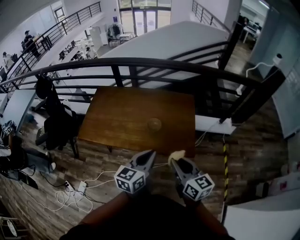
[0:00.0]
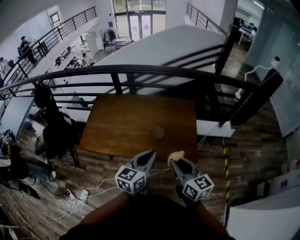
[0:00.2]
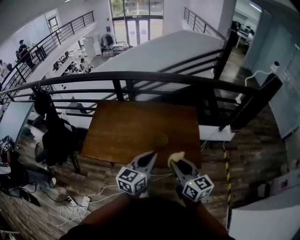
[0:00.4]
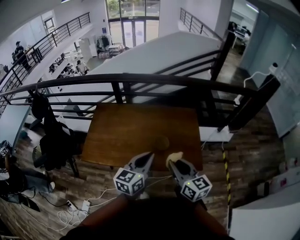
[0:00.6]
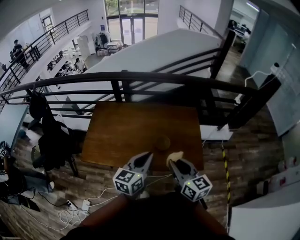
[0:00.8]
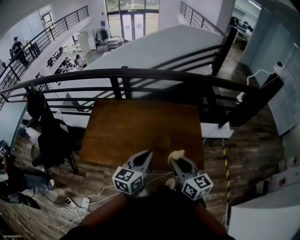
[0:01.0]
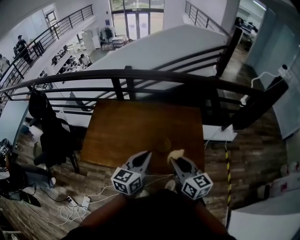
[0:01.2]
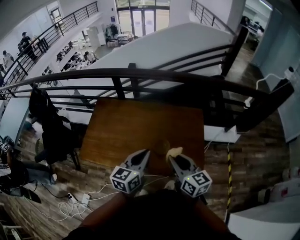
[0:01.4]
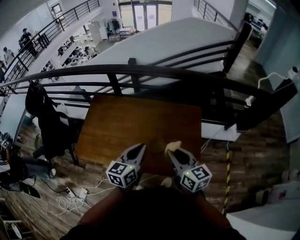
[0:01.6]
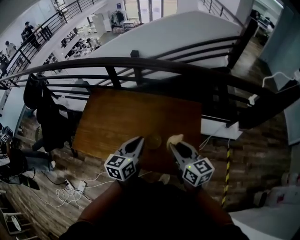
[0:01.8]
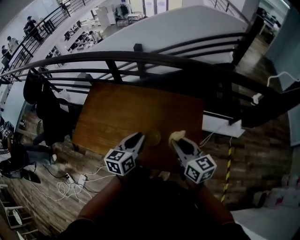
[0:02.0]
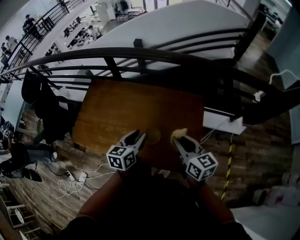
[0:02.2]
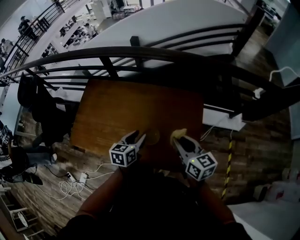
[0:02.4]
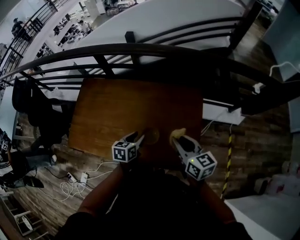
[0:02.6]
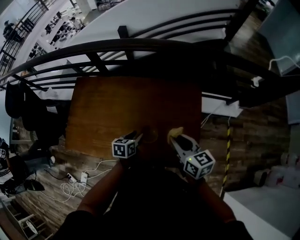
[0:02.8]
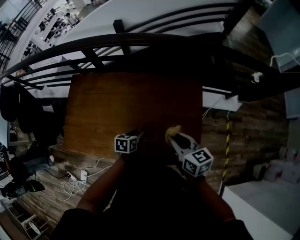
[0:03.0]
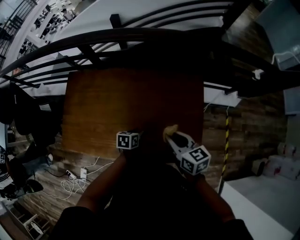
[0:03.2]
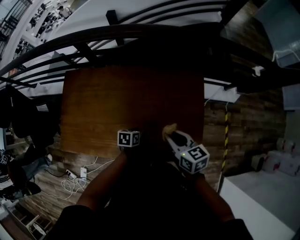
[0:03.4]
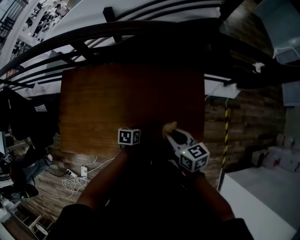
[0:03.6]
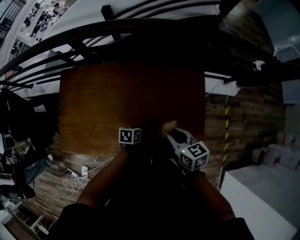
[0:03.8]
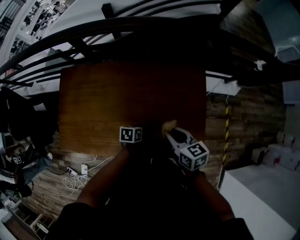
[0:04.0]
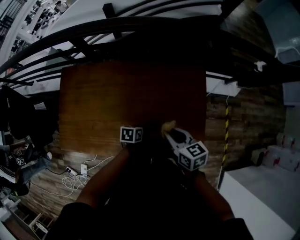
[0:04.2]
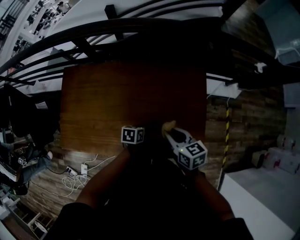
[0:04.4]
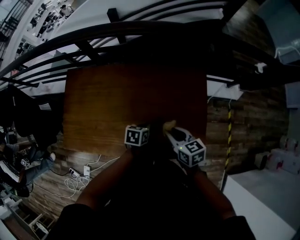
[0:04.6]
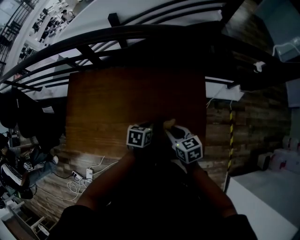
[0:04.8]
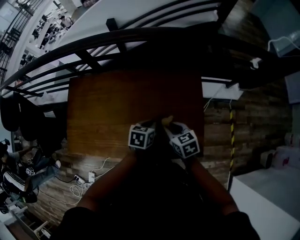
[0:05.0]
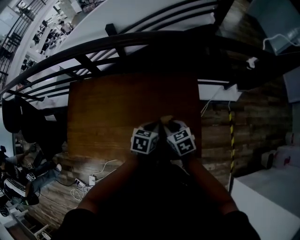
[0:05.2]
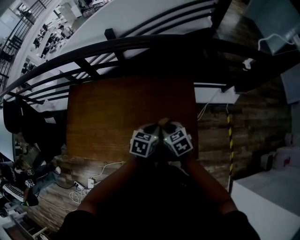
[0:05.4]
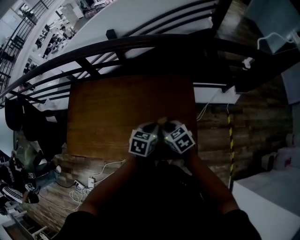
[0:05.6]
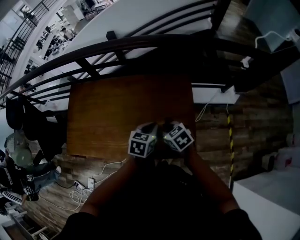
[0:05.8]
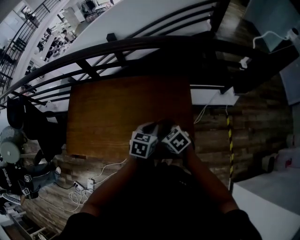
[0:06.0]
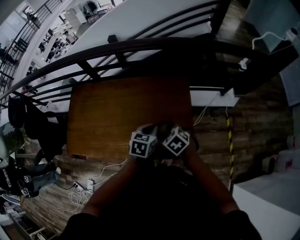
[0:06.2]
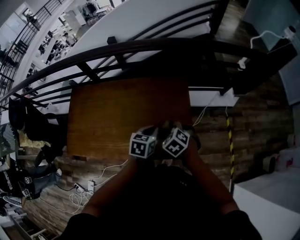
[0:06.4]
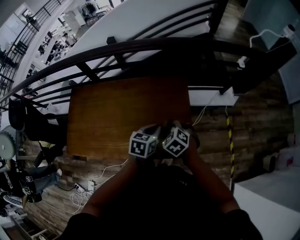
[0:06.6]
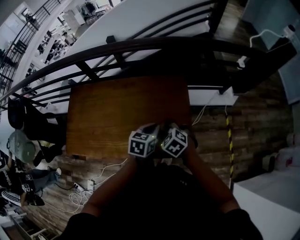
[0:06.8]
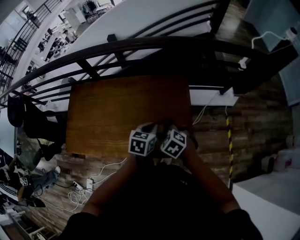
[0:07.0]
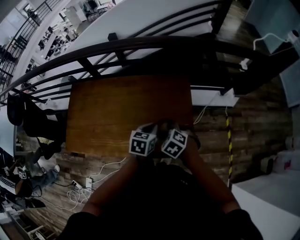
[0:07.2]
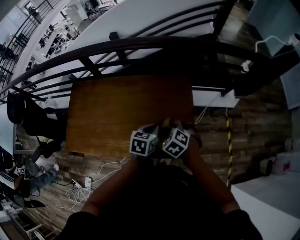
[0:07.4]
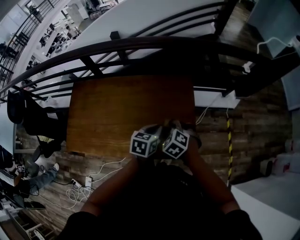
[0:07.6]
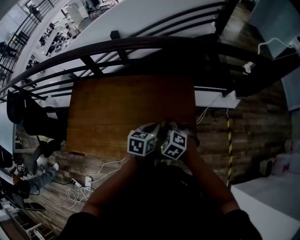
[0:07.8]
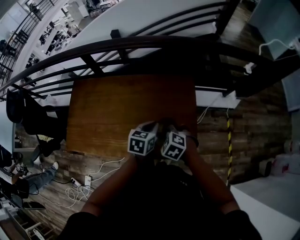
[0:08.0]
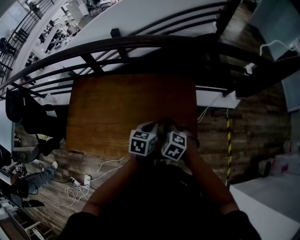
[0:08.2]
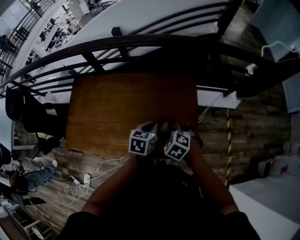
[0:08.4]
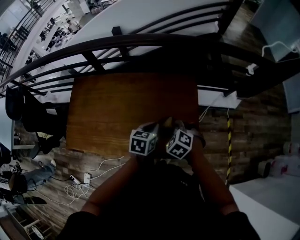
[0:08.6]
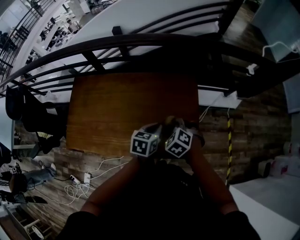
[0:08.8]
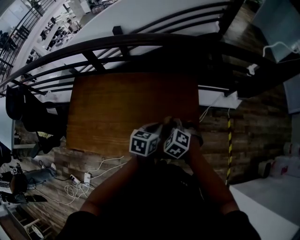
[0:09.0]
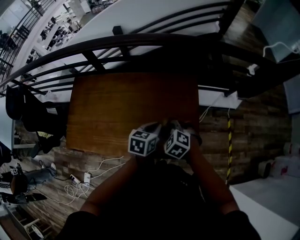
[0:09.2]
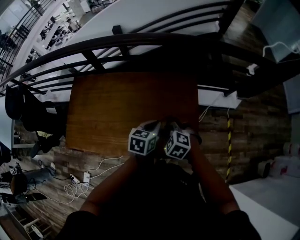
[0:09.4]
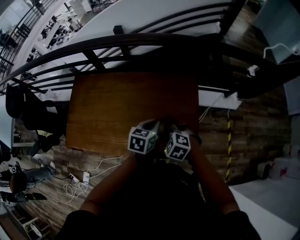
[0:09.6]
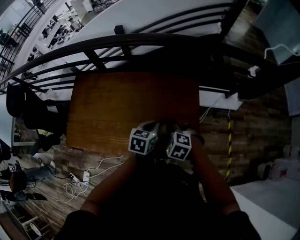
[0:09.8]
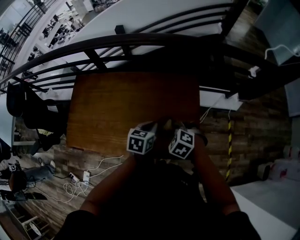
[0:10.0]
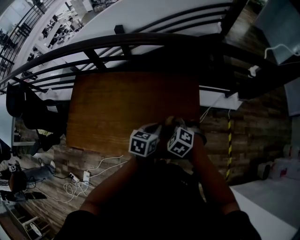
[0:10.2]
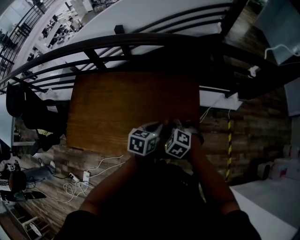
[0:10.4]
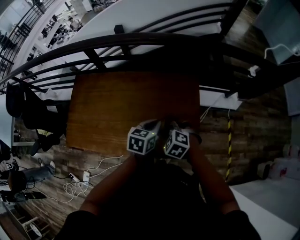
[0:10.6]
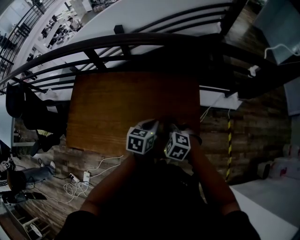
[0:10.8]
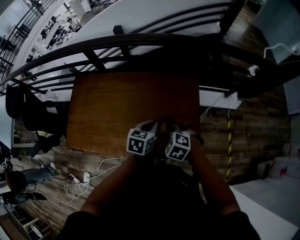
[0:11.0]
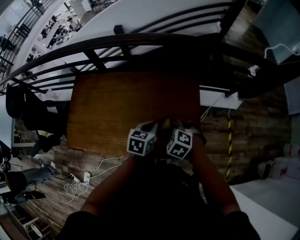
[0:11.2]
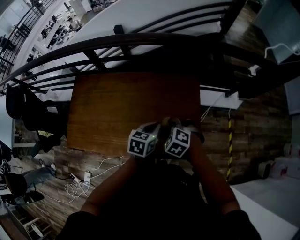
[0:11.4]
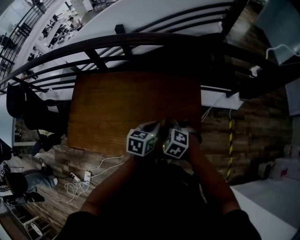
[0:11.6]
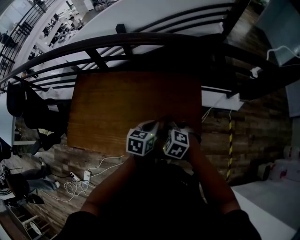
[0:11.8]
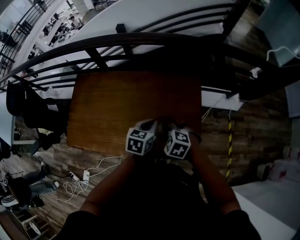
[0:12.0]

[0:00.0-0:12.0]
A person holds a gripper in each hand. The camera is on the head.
0:00.0 to 0:01.6: The two grippers go approximately 20 cm forward.
0:01.6 to 0:03.0: The right gripper is displaced downward and forward by about 15 cm, while the left gripper shifts some 30 cm downward, tips its fingers downward by approximately 40 degrees, and opens its fingers.
0:03.0 to 0:04.4: The grippers both shift downward by approximately 5 cm. The left gripper closes.
0:04.4 to 0:06.0: The right gripper travels backward and to the right by about 10 cm, and rotates about 30 degrees. Meanwhile the left gripper travels upward and to the right by roughly 25 cm, and swivels some 30 degrees.
0:06.0 to 0:07.6: The right gripper swivels about 30 degrees.
0:07.6 to 0:10.4: The grippers move only a little.
0:10.4 to 0:12.0: The right gripper ends up approximately 5 cm from where it was.

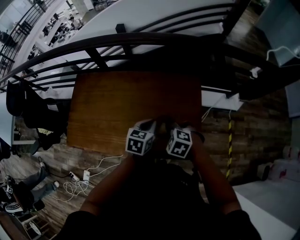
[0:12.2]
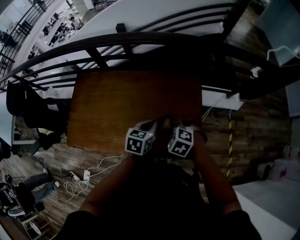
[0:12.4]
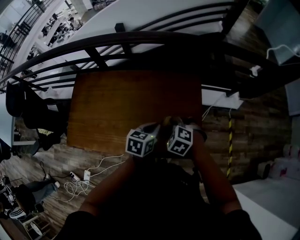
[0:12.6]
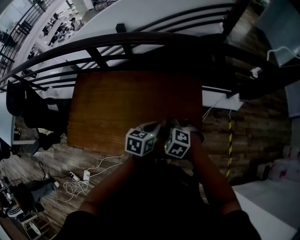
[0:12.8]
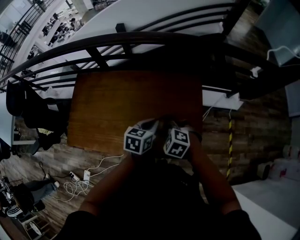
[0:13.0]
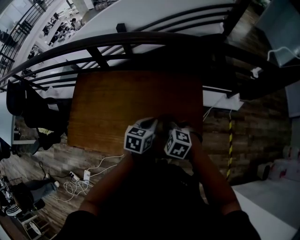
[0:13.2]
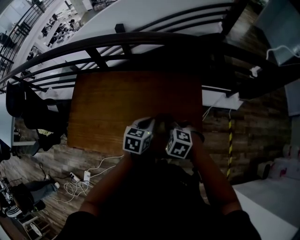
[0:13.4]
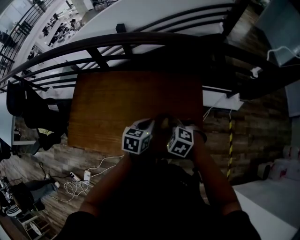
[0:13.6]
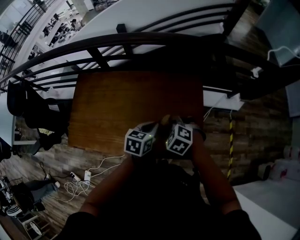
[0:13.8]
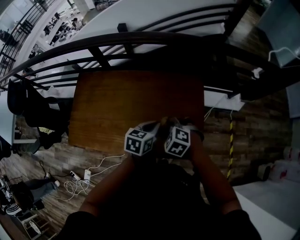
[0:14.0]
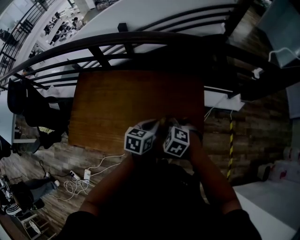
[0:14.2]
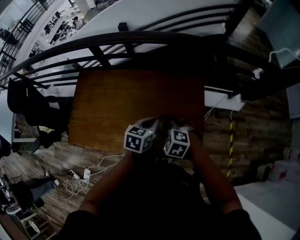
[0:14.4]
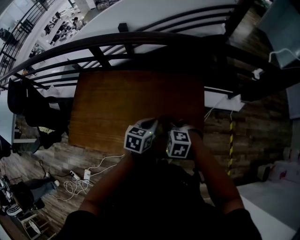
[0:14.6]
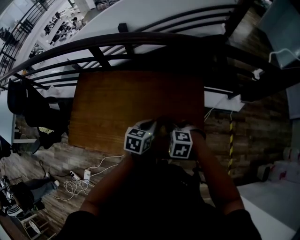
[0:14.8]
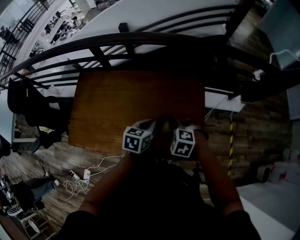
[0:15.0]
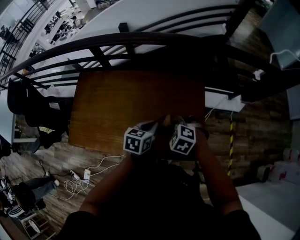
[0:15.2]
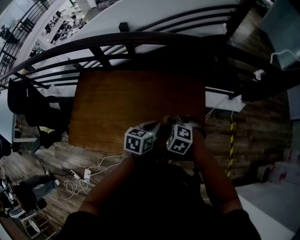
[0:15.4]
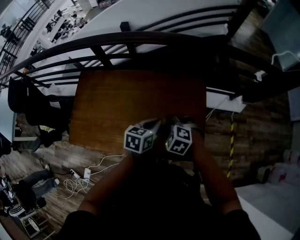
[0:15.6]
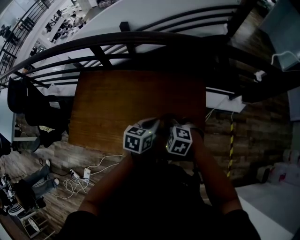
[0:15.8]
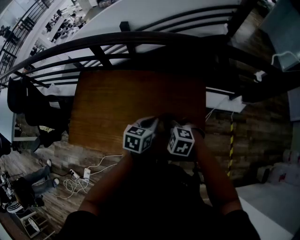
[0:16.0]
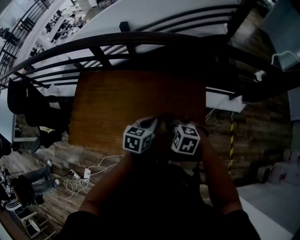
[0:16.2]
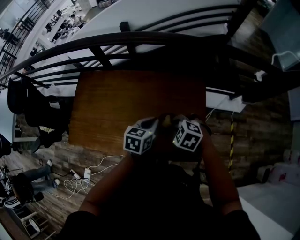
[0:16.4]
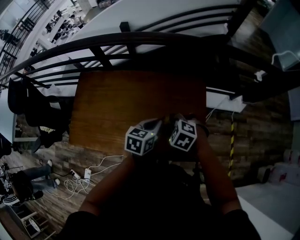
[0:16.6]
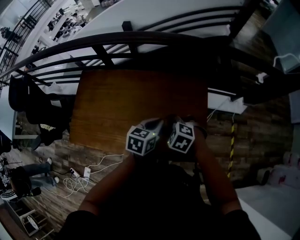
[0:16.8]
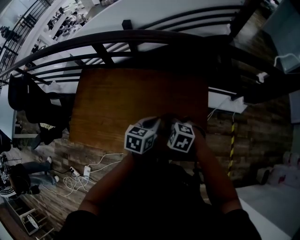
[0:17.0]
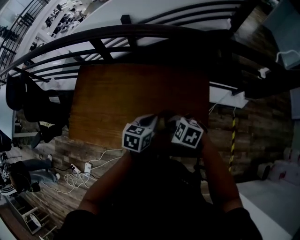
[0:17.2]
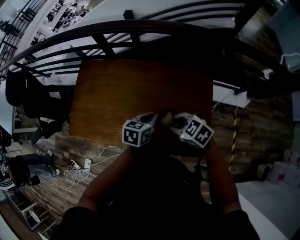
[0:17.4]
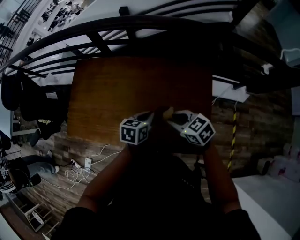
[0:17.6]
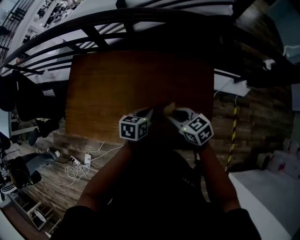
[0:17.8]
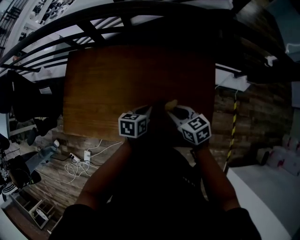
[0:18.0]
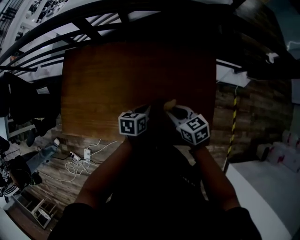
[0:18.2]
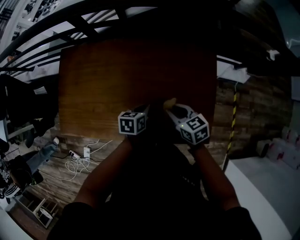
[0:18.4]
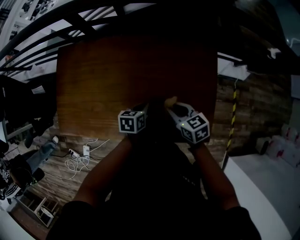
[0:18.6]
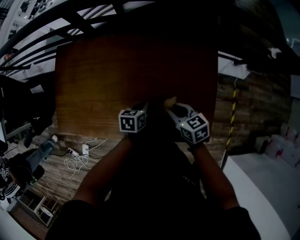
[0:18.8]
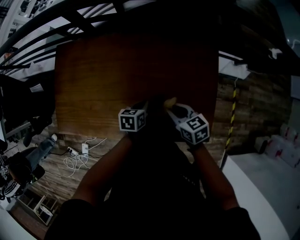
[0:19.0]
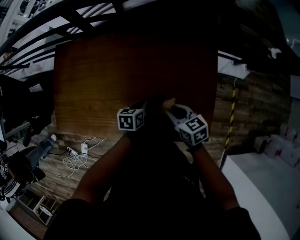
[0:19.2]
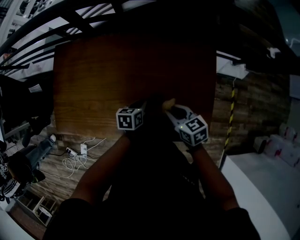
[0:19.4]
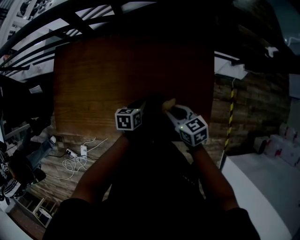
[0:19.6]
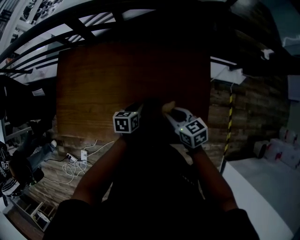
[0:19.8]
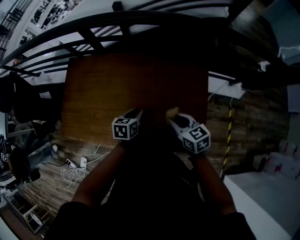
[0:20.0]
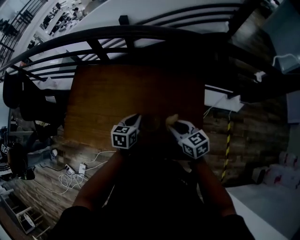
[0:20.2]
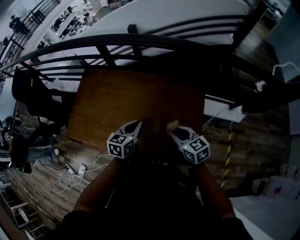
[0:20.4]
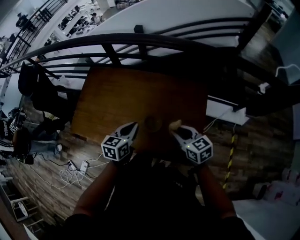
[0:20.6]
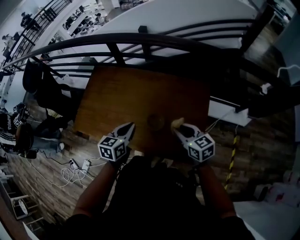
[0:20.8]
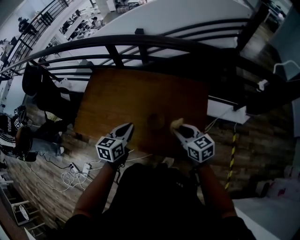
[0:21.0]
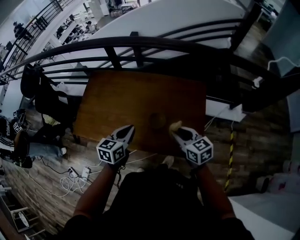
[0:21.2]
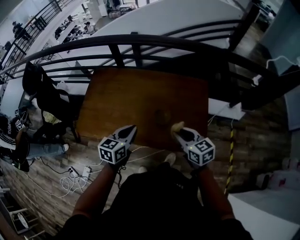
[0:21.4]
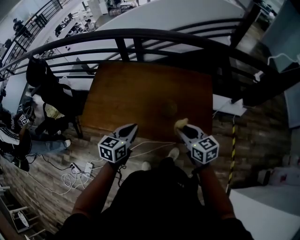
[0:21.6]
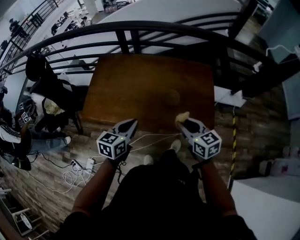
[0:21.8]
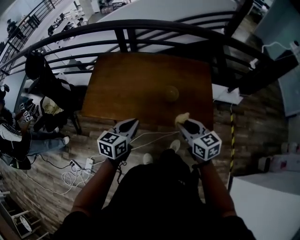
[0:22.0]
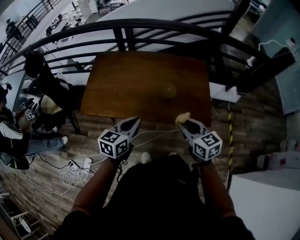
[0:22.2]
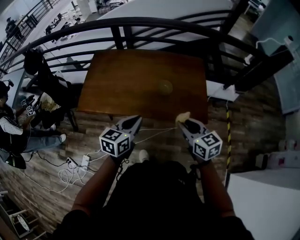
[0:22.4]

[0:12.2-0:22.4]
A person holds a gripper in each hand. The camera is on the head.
0:12.2 to 0:16.6: There are only small adjustments of the grippers.
0:16.6 to 0:18.0: The left gripper goes approximately 15 cm downward, while the right gripper goes about 5 cm downward, and rolls clockwise, seen from behind, by approximately 40 degrees.
0:18.0 to 0:19.4: The left gripper shifts roughly 10 cm downward.
0:19.4 to 0:21.0: The left gripper shifts some 25 cm upward, and rotates about 30 degrees. The right gripper travels upward and backward by roughly 20 cm.
0:21.0 to 0:22.4: Both grippers travel together backward, approximately 20 cm.

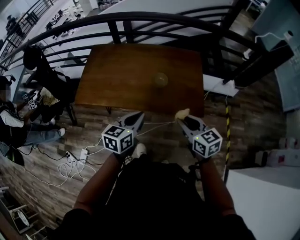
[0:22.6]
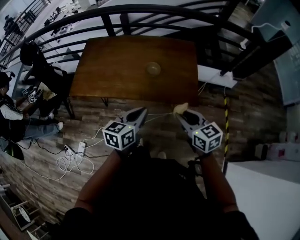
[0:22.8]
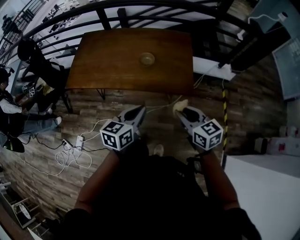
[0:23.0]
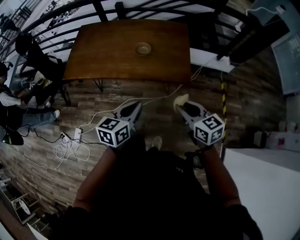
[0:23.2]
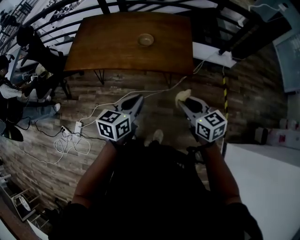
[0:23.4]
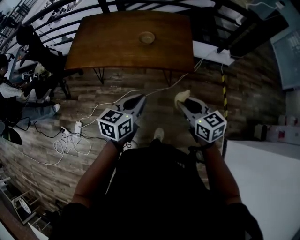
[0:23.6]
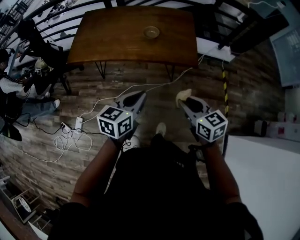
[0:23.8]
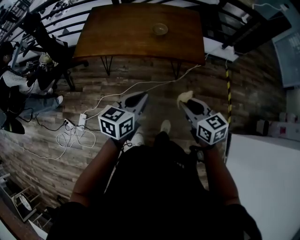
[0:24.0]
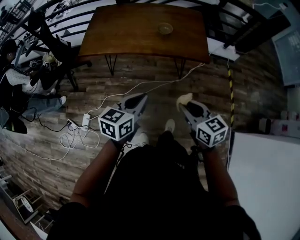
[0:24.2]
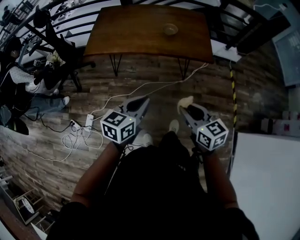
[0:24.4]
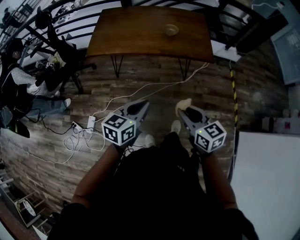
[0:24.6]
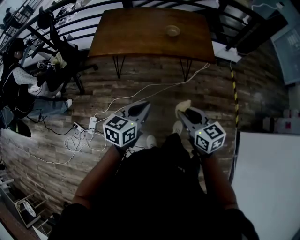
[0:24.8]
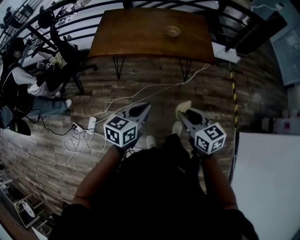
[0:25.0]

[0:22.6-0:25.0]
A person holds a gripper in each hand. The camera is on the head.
0:22.6 to 0:23.8: The grippers both shift backward by about 20 cm.
0:23.8 to 0:25.0: The two grippers go roughly 20 cm to the left and backward.
